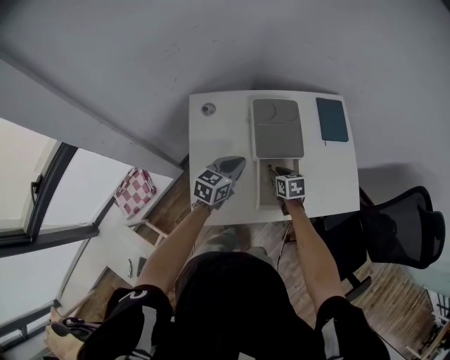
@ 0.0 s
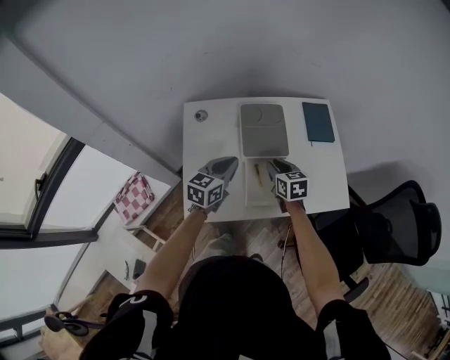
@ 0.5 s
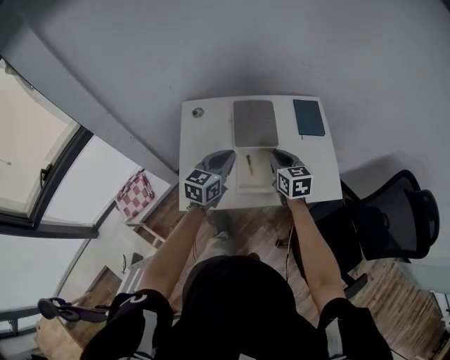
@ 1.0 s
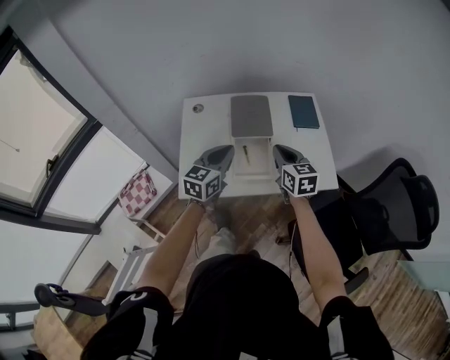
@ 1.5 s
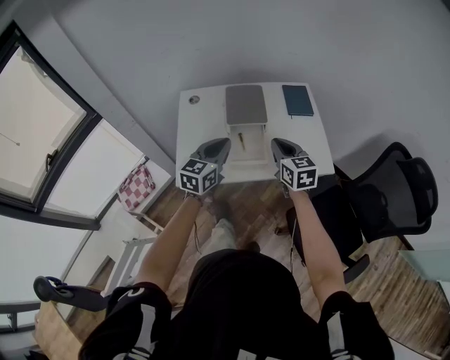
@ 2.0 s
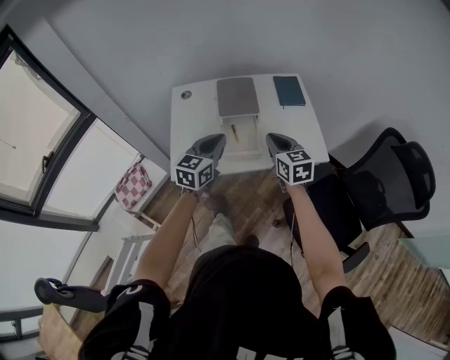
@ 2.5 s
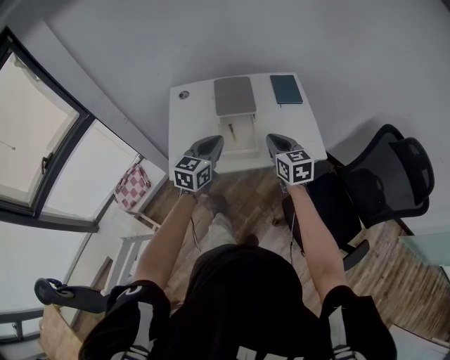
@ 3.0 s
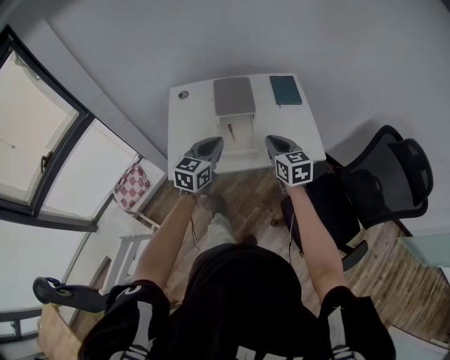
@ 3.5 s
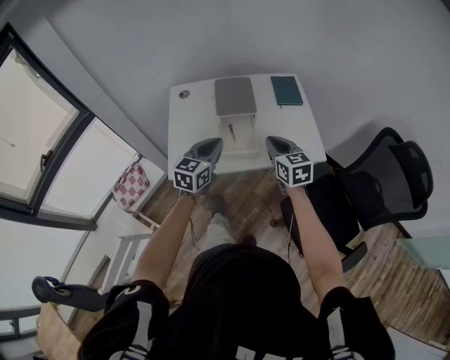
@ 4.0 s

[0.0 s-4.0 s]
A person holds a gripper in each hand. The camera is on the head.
0.0 to 2.0 s: The right gripper heads upward, backward and to the right, covering about 35 cm, tilts its fingers some 30 degrees upward, and closes, while the left gripper moves backward, upward and to the right, about 25 cm.
2.0 to 4.0 s: The grippers move only a little.

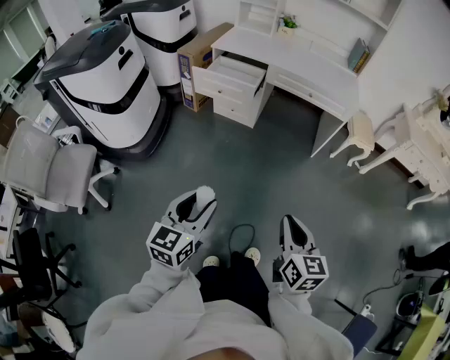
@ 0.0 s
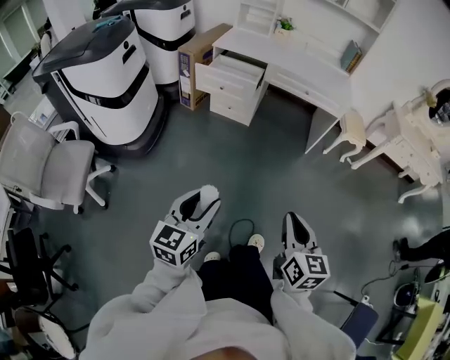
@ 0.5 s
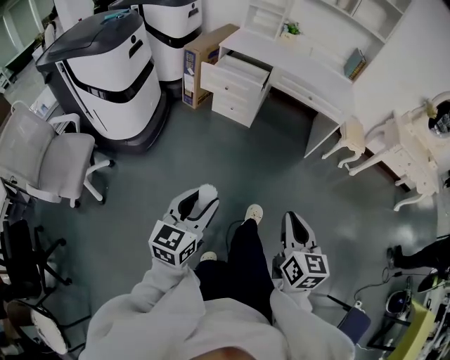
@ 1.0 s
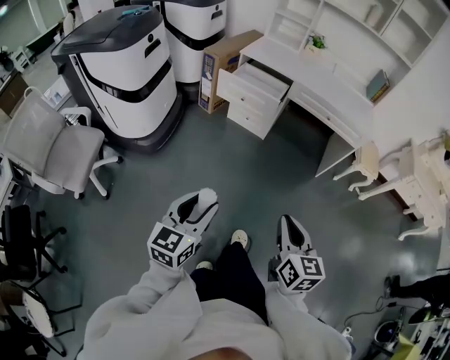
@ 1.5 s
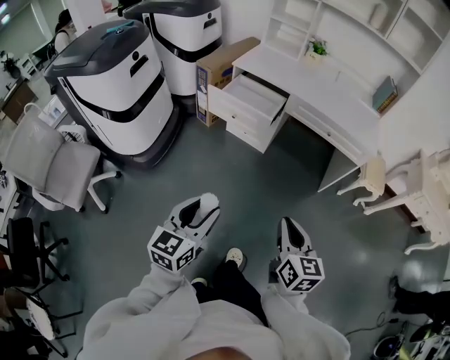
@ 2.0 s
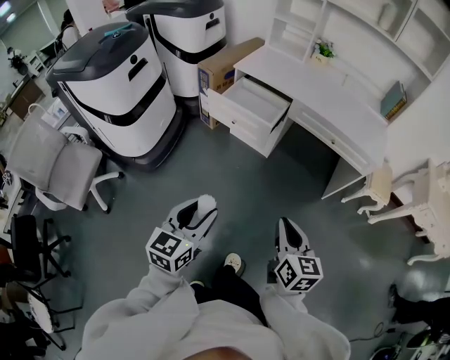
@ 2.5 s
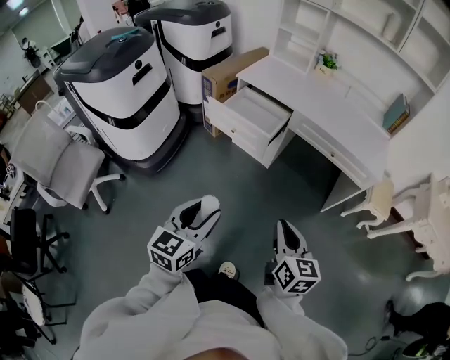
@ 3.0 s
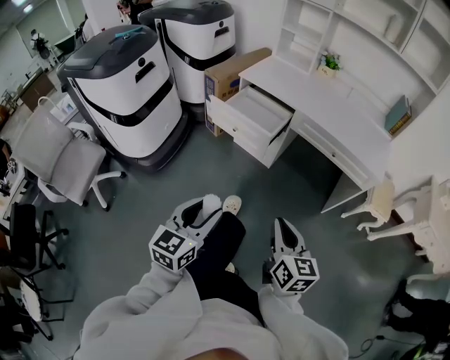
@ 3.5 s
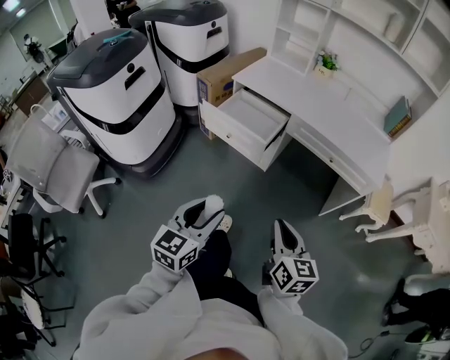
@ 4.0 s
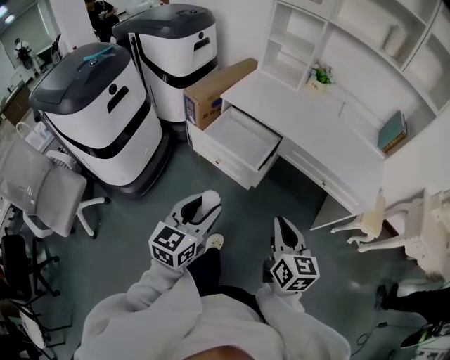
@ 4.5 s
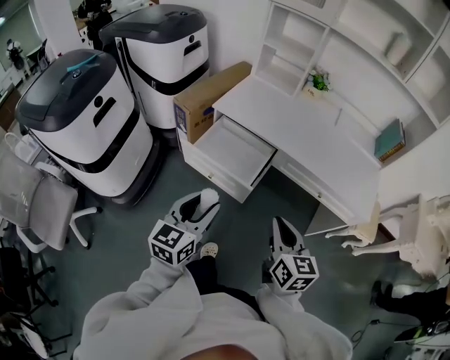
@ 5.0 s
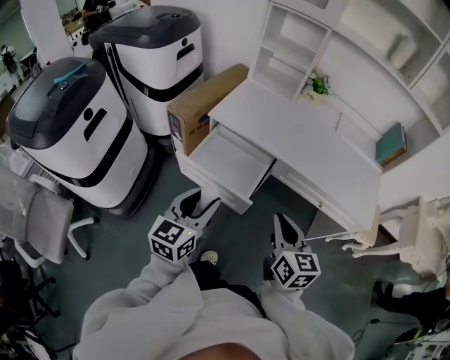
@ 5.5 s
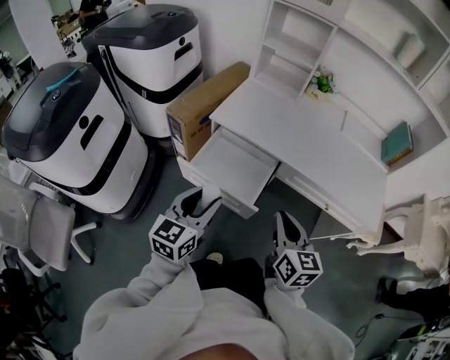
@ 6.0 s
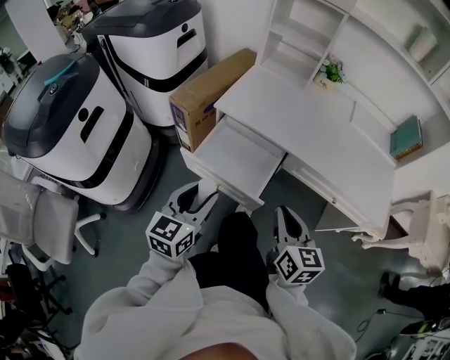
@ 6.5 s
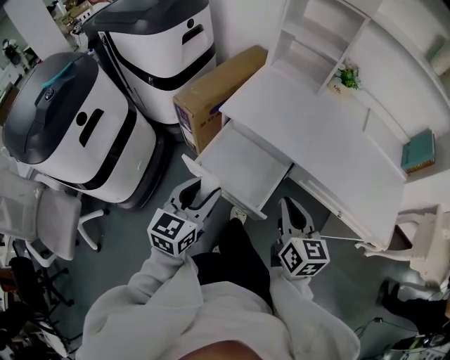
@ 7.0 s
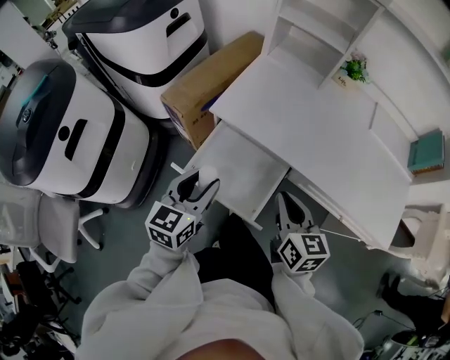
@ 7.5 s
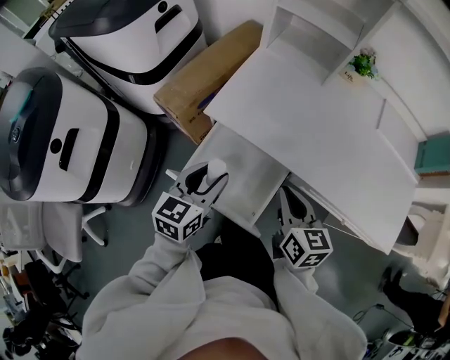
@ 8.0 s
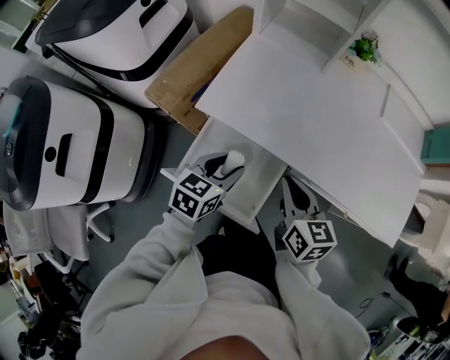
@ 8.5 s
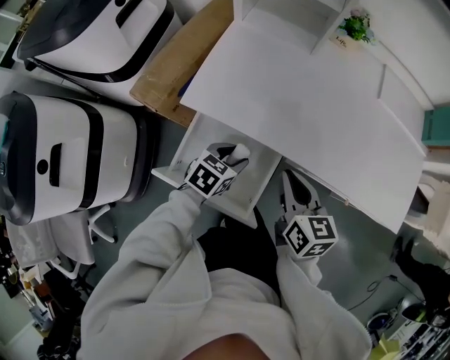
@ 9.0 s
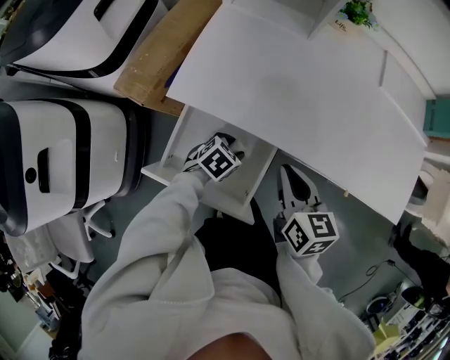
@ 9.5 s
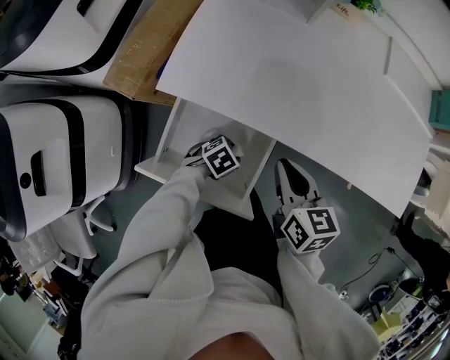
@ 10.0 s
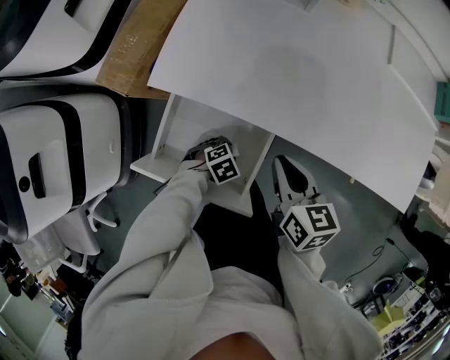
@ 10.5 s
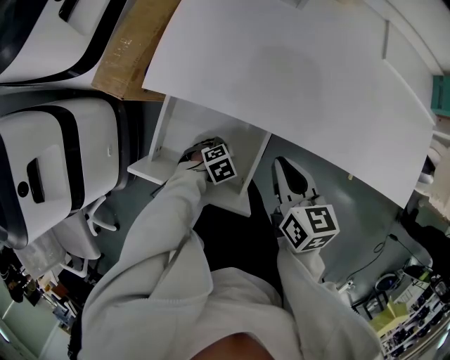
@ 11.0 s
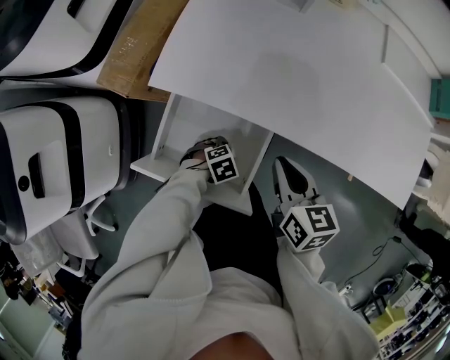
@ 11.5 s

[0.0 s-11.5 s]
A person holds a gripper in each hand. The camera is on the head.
0.0 to 2.0 s: The grippers both shift forward by some 15 cm.
2.0 to 4.0 s: The right gripper heads forward, covering roughly 15 cm. Meanwhile the left gripper heads forward and to the right, covering about 15 cm.
4.0 to 6.0 s: The grippers both shift forward by roughly 30 cm.
6.0 to 7.5 s: Both grippers move forward, approximately 15 cm.
7.5 to 9.5 s: The left gripper travels downward by about 25 cm, and tilts its fingers approximately 40 degrees downward, while the right gripper ends up about 10 cm from where it was.
9.5 to 11.5 s: The left gripper ends up about 15 cm from where it was, turns by about 30 degrees, and opens.

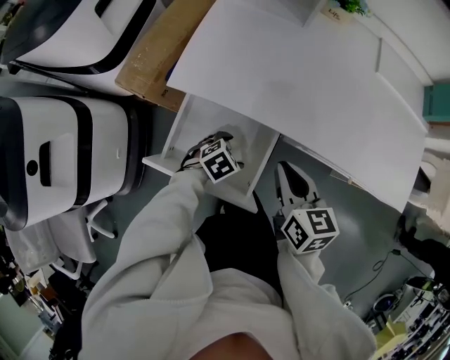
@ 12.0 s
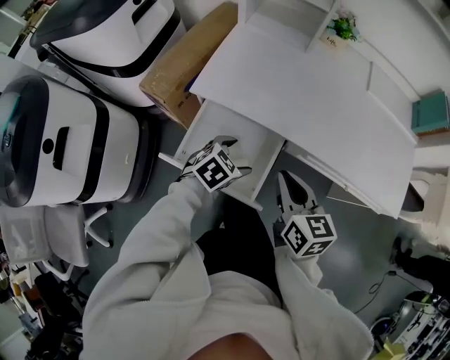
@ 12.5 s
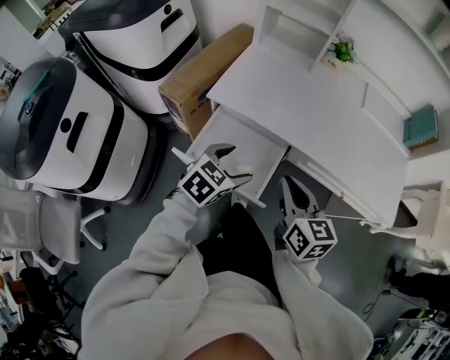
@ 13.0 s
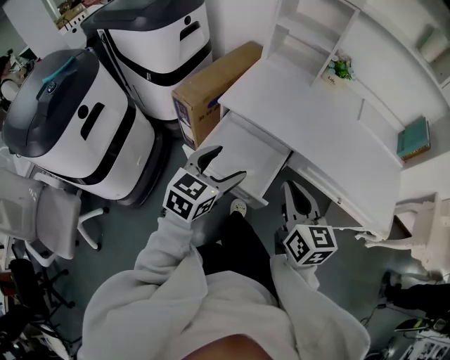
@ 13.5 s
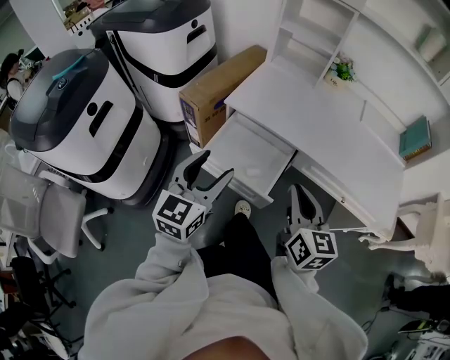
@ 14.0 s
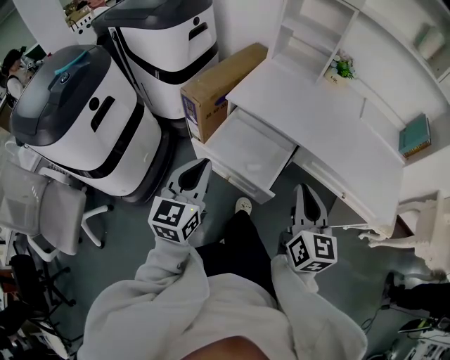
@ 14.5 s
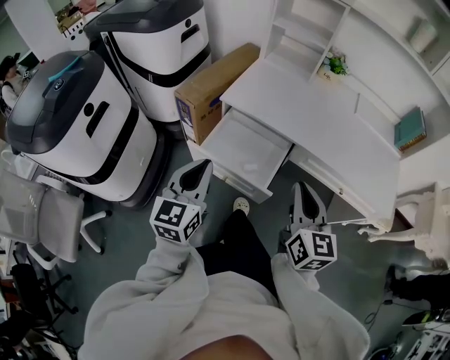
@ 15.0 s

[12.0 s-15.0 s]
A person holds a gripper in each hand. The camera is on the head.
12.0 to 13.5 s: The right gripper travels upward by roughly 10 cm, while the left gripper goes roughly 30 cm upward, and tips its fingers upward by roughly 40 degrees.
13.5 to 15.0 s: The left gripper shifts roughly 10 cm to the left and backward, swivels about 20 degrees, and closes up; the right gripper moves approximately 5 cm.

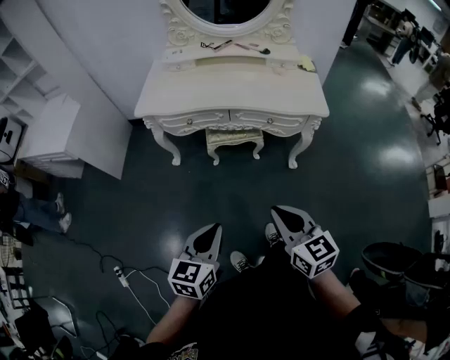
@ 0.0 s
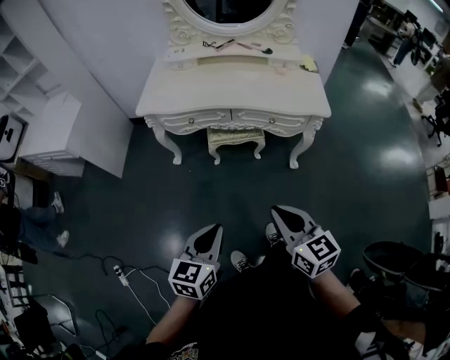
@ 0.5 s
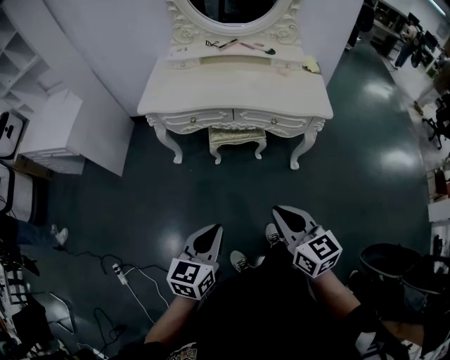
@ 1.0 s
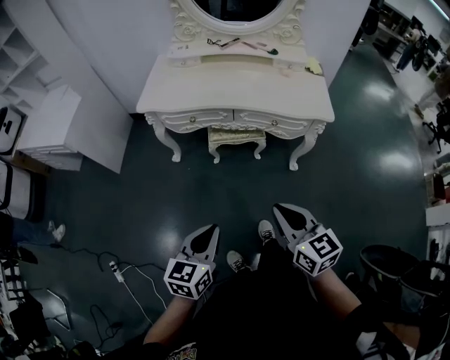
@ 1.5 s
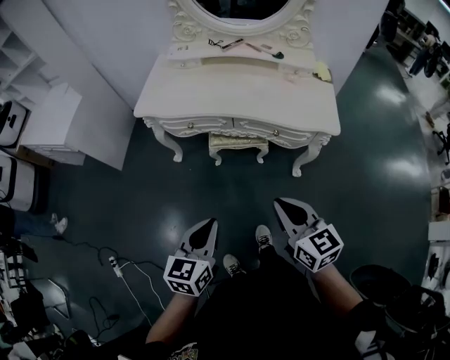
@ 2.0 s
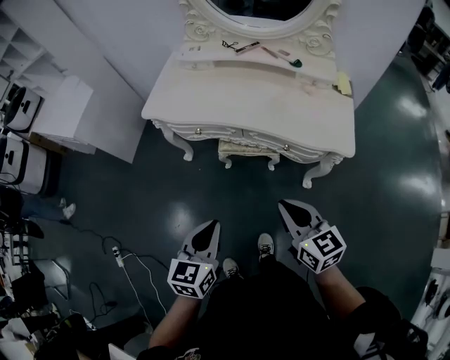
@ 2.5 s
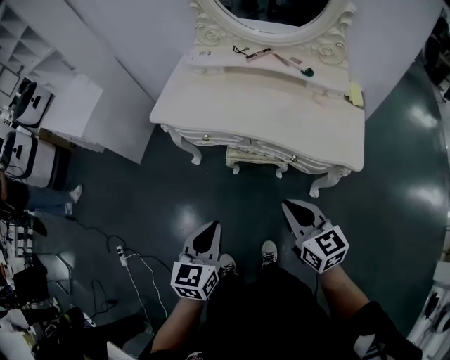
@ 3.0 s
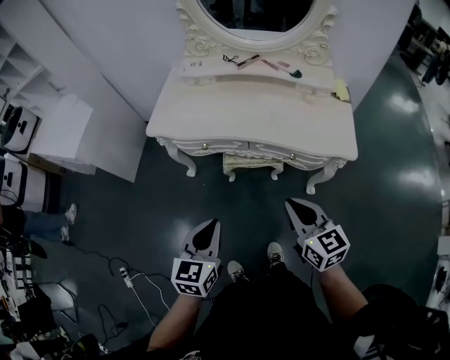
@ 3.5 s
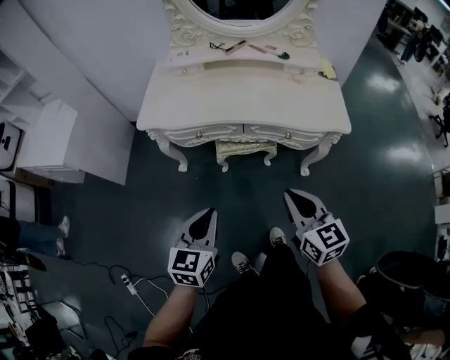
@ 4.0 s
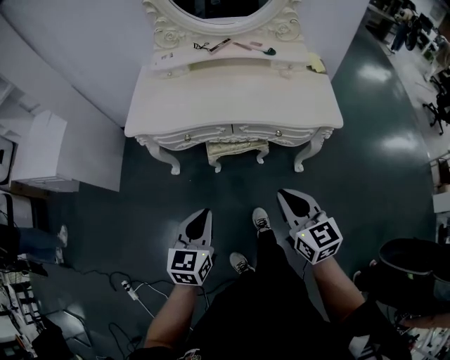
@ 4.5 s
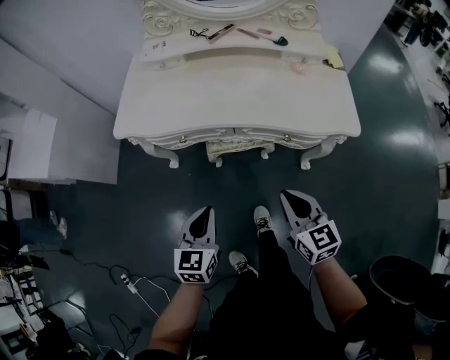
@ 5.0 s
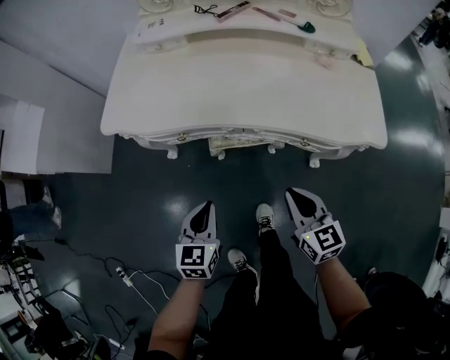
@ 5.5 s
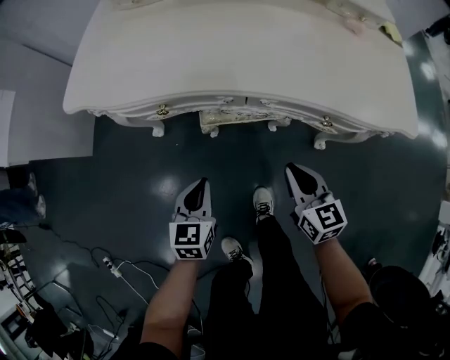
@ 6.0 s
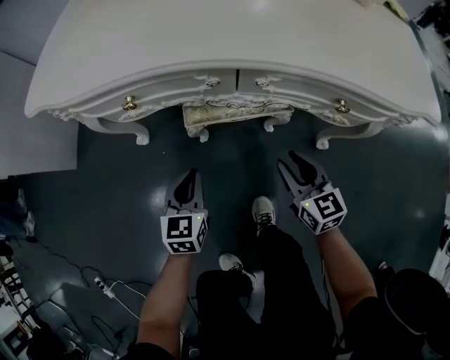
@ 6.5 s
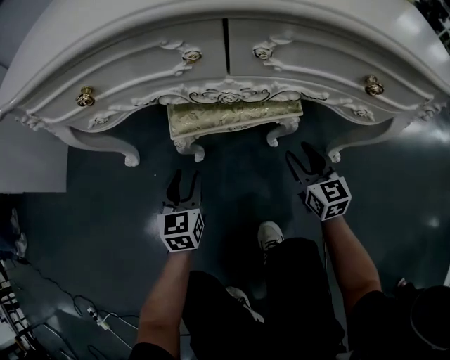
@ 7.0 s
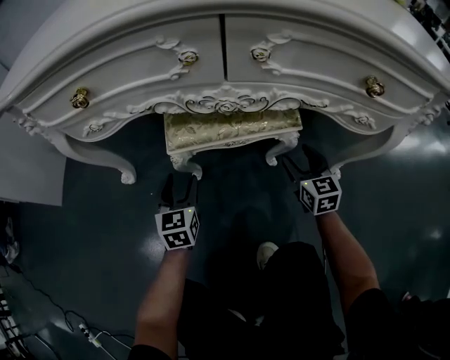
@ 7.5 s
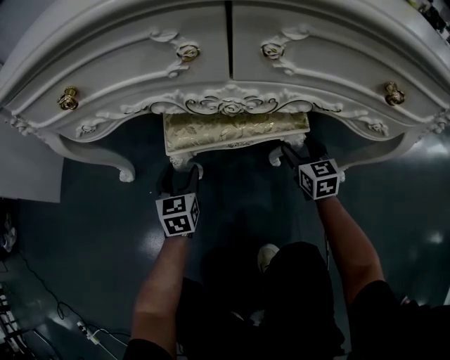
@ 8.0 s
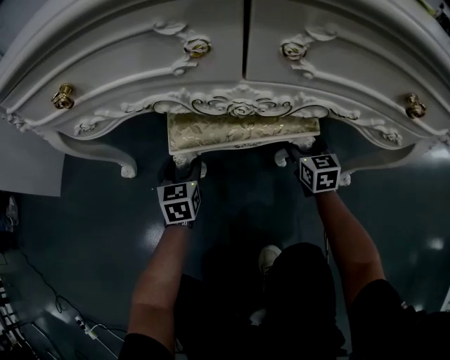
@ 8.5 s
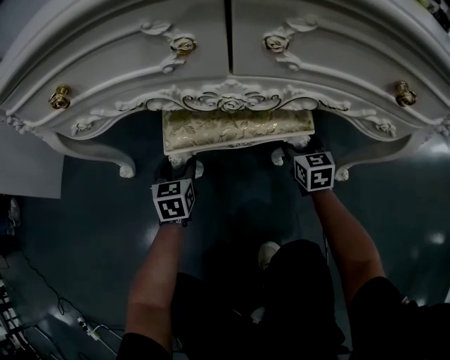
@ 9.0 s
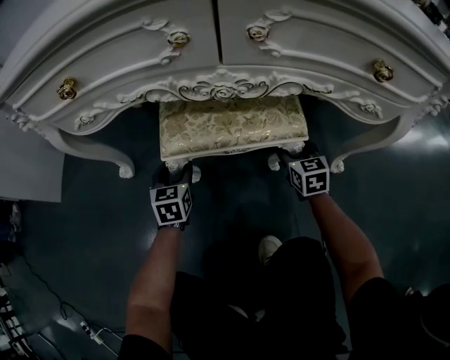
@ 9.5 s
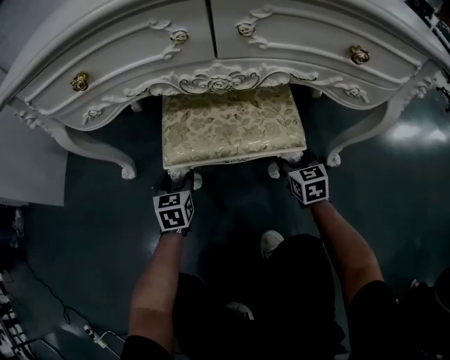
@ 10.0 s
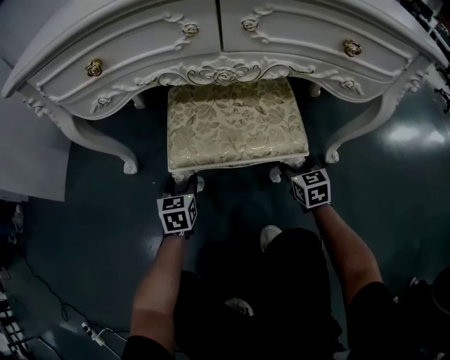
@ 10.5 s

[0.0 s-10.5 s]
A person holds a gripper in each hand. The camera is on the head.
0.0 to 2.0 s: The grippers both shift forward by approximately 10 cm.
2.0 to 4.0 s: The right gripper is displaced forward by roughly 5 cm, while the left gripper goes some 10 cm forward and to the left.
4.0 to 6.5 s: The grippers both shift downward and forward by some 50 cm. The right gripper opens its fingers.
6.5 to 8.5 s: The two grippers go roughly 30 cm downward and forward. The left gripper opens, while the right gripper opens.
8.5 to 10.5 s: The two grippers go some 15 cm backward.
